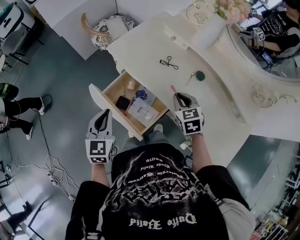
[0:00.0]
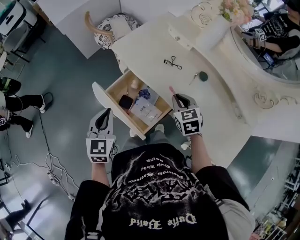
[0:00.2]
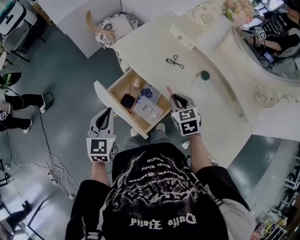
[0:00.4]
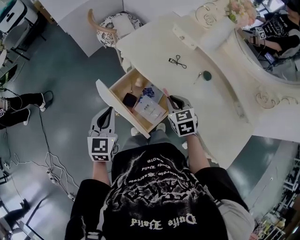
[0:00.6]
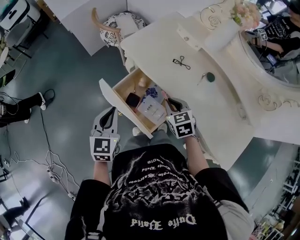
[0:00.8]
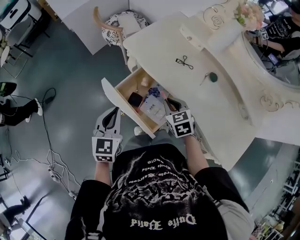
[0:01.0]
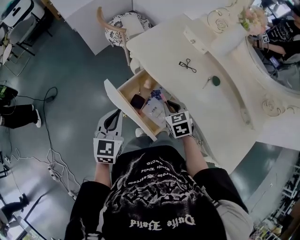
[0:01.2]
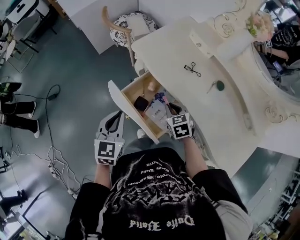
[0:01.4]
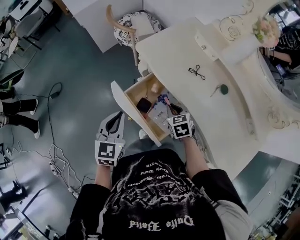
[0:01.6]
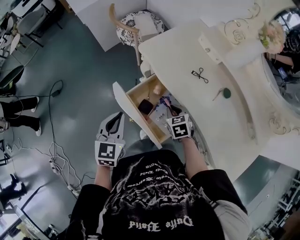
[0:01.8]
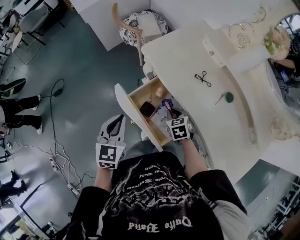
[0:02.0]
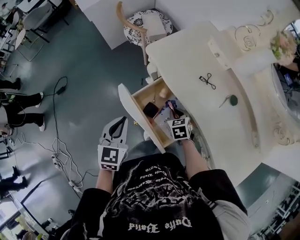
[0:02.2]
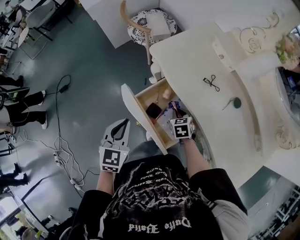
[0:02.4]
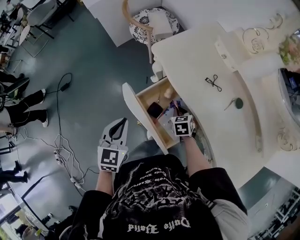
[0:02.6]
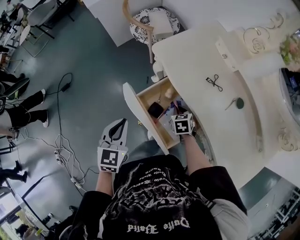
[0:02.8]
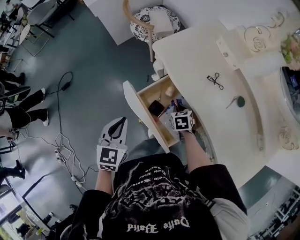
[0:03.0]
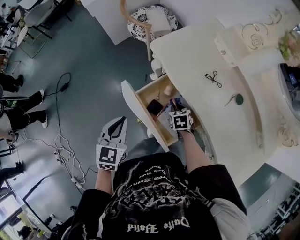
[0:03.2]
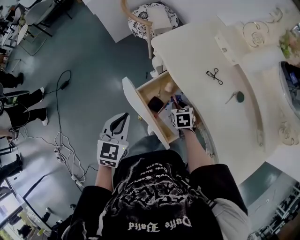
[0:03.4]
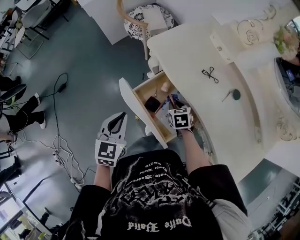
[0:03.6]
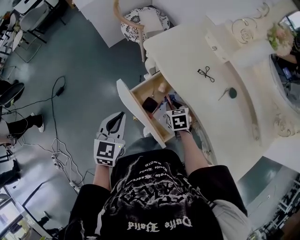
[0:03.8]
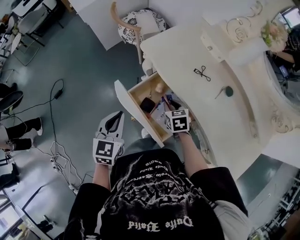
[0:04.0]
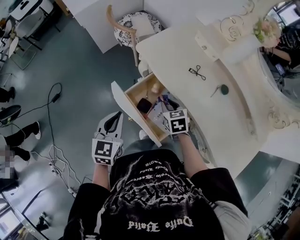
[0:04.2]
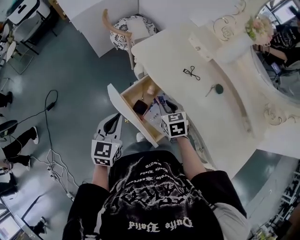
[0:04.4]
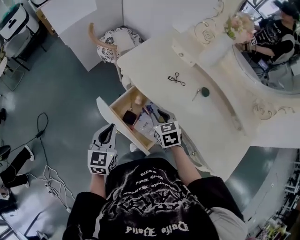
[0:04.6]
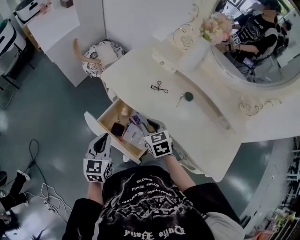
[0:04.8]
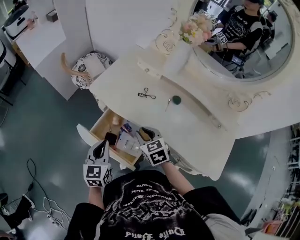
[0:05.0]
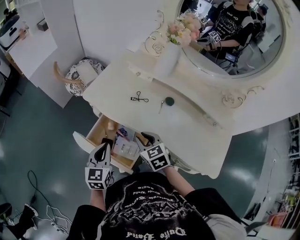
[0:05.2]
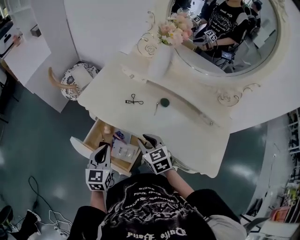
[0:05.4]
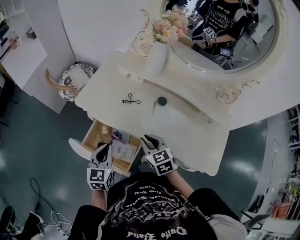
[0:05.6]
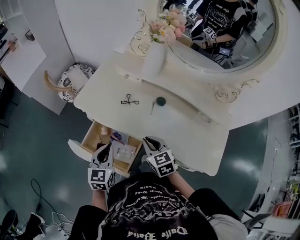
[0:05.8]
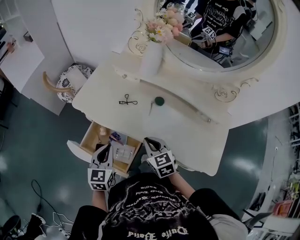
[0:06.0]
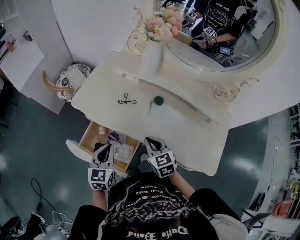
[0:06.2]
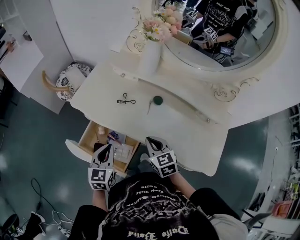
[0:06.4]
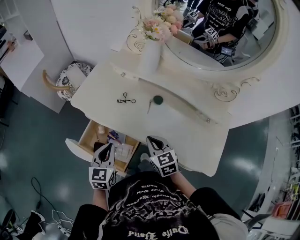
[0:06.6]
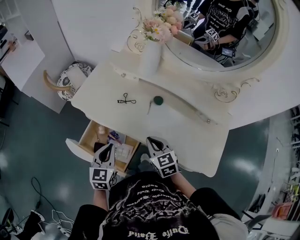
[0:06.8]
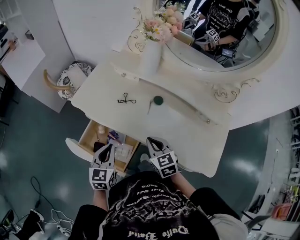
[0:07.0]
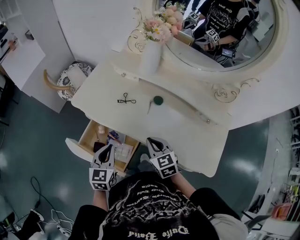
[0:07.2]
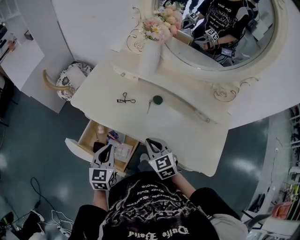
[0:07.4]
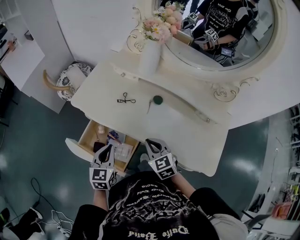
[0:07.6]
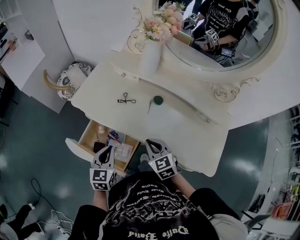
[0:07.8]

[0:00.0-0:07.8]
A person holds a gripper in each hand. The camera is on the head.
0:00.0 to 0:01.6: The right gripper shifts about 15 cm to the left and downward. The left gripper moves approximately 5 cm.
0:01.6 to 0:03.2: The right gripper goes some 10 cm downward.
0:03.2 to 0:04.6: The right gripper travels upward by approximately 15 cm.
0:04.6 to 0:06.2: The right gripper is displaced to the right and upward by some 15 cm, and closes; the left gripper travels to the right by roughly 15 cm.
0:06.2 to 0:07.8: There are only small adjustments of the grippers.

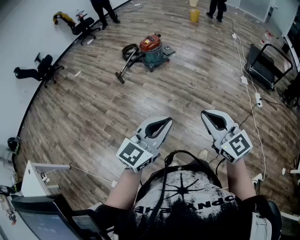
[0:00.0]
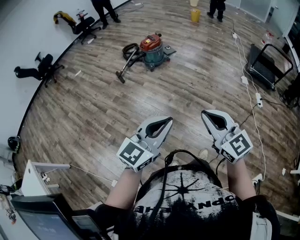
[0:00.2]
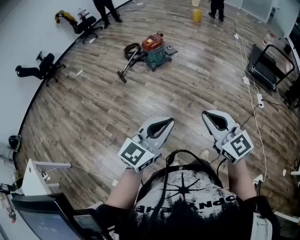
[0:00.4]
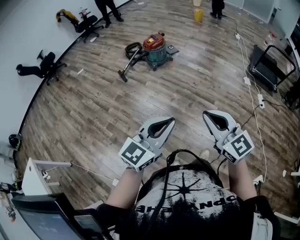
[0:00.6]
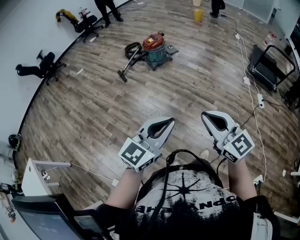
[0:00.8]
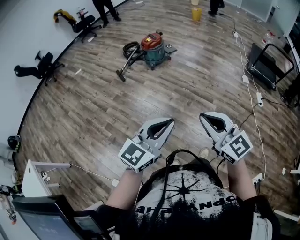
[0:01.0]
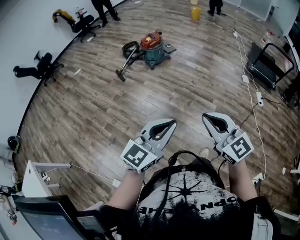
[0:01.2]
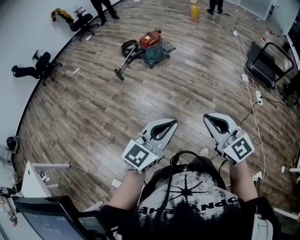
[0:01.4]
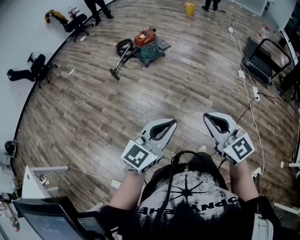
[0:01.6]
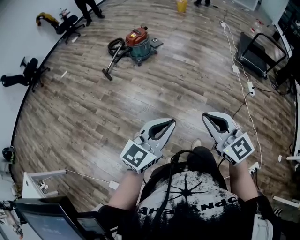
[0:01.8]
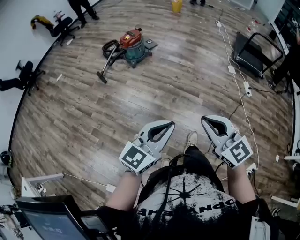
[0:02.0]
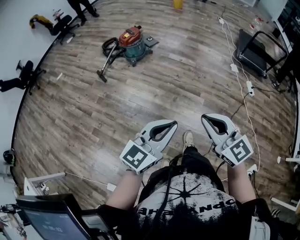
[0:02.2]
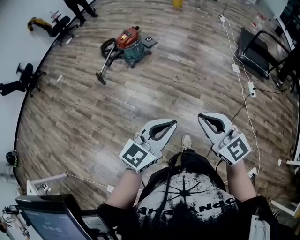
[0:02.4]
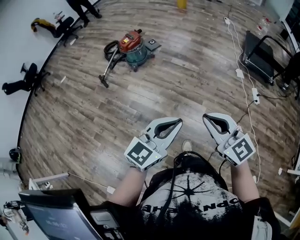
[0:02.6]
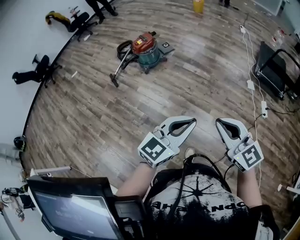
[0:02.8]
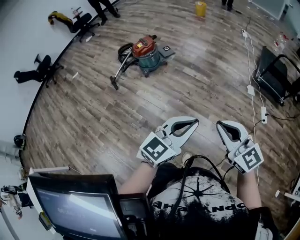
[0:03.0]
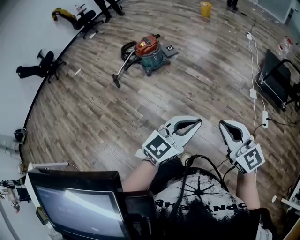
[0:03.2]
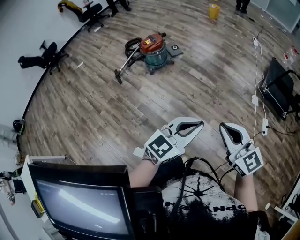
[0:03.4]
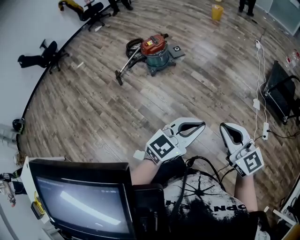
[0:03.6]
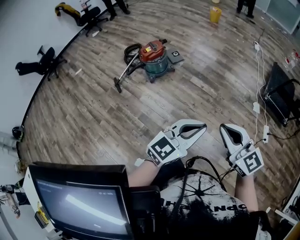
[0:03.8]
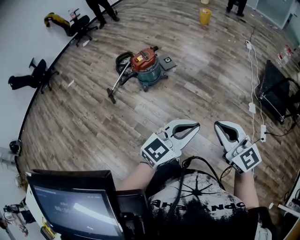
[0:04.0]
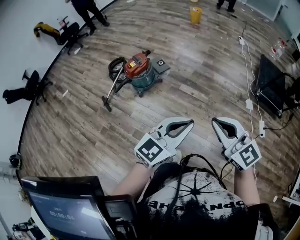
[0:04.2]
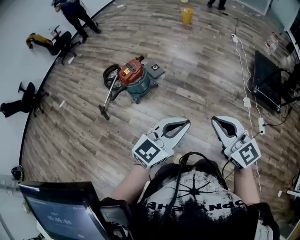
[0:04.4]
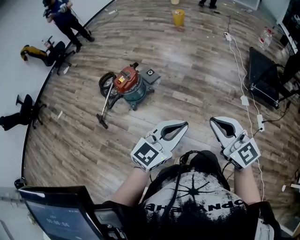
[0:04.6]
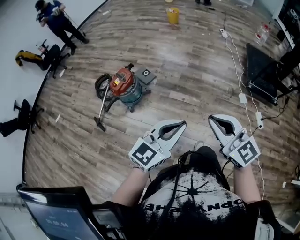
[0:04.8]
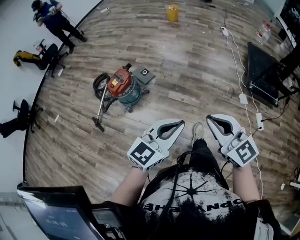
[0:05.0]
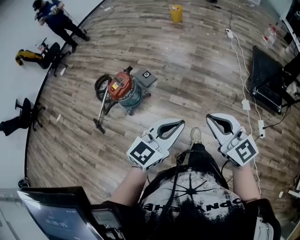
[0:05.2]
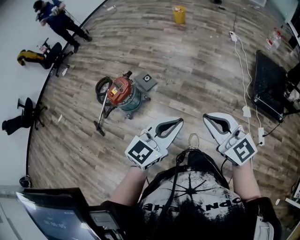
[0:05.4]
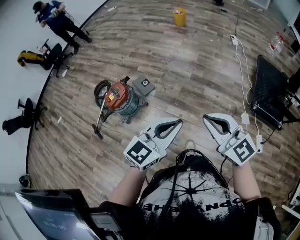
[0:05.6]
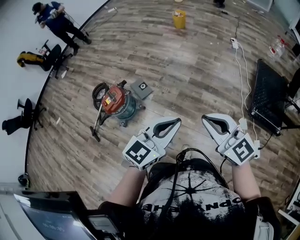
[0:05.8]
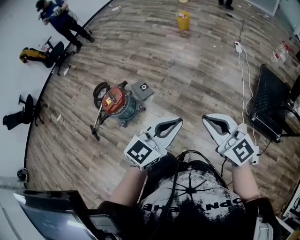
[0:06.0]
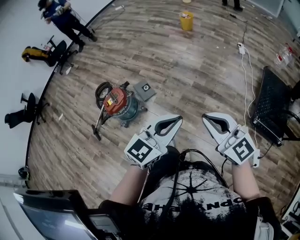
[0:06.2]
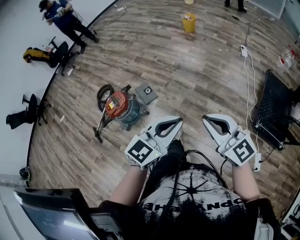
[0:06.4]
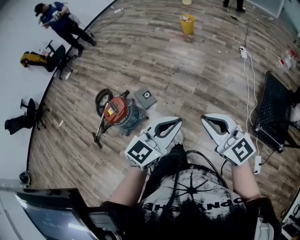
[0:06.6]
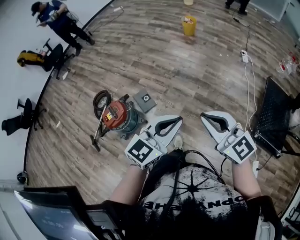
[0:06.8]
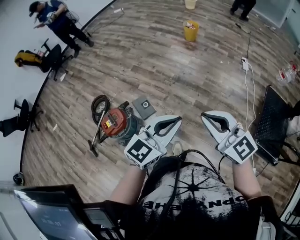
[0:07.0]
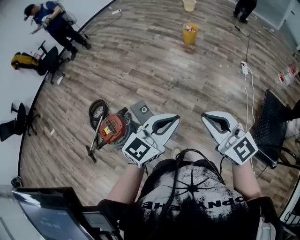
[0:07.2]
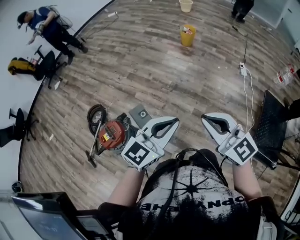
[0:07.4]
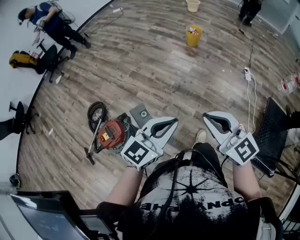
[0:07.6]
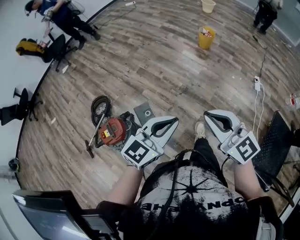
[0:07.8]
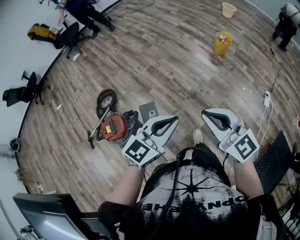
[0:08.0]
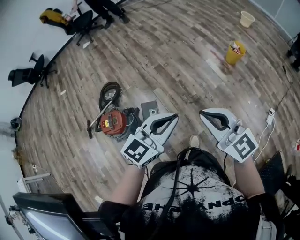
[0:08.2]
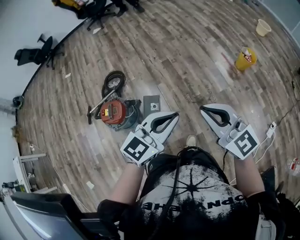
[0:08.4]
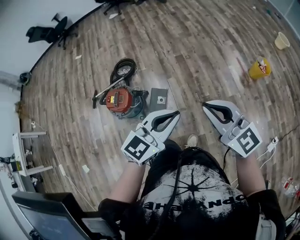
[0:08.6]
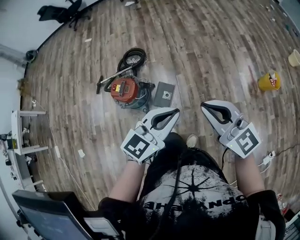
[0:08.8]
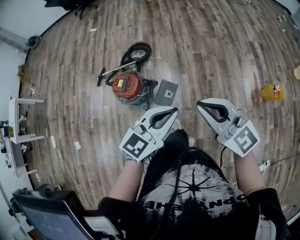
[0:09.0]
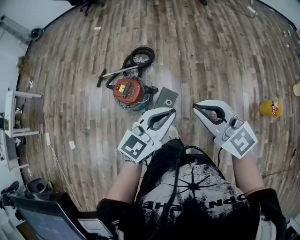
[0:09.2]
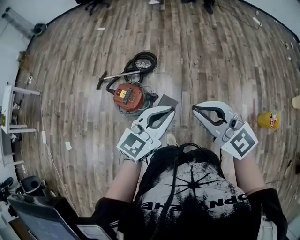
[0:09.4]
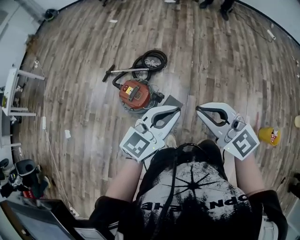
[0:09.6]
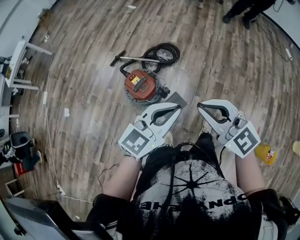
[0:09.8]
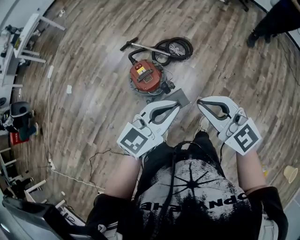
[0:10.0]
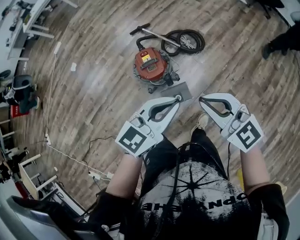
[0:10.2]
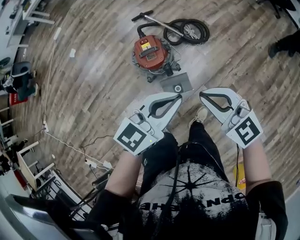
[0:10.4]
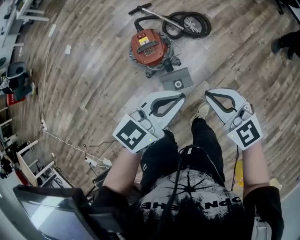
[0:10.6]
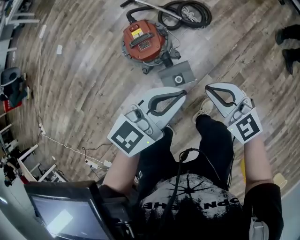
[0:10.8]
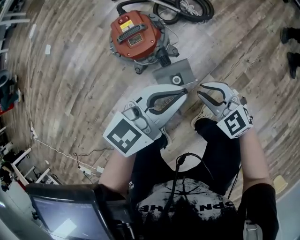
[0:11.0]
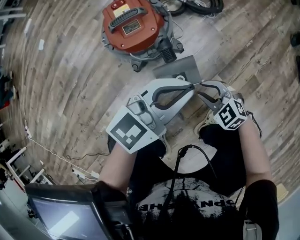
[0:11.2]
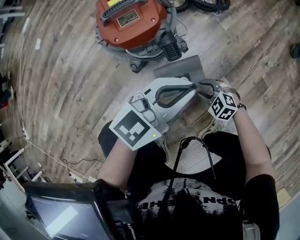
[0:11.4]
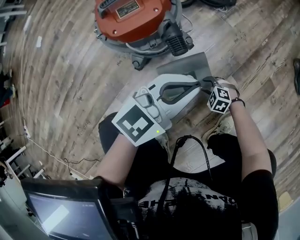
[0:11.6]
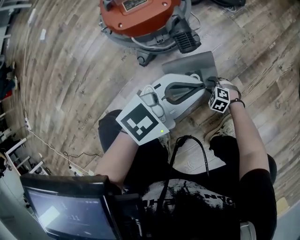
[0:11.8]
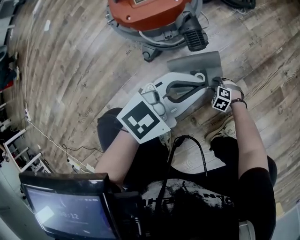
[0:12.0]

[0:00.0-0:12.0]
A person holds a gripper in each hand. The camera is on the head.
0:00.0 to 0:01.6: The grippers stay close to where they were, moving slightly.
0:01.6 to 0:03.0: Both grippers travel together forward and to the right, about 35 cm.
0:03.0 to 0:04.4: Both grippers move forward, about 30 cm.
0:04.4 to 0:06.0: Both grippers are carried forward and to the right, some 40 cm.
0:06.0 to 0:07.6: The two grippers go approximately 40 cm forward.
0:07.6 to 0:09.0: The right gripper changes place by about 30 cm, and changes its angle by about 60 degrees; the left gripper ends up some 25 cm from where it was, and rotates roughly 60 degrees.
0:09.0 to 0:10.4: The right gripper ends up roughly 30 cm from where it was, and changes its angle by about 60 degrees; the left gripper changes place by approximately 25 cm, and swivels roughly 50 degrees.
0:10.4 to 0:12.0: The right gripper shifts some 90 cm downward, points its fingers about 60 degrees further downward, and opens its fingers, while the left gripper goes approximately 60 cm downward.

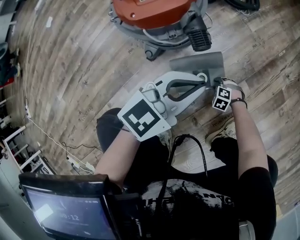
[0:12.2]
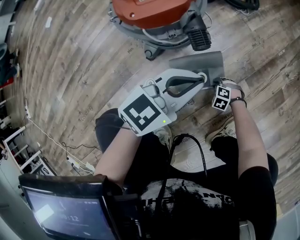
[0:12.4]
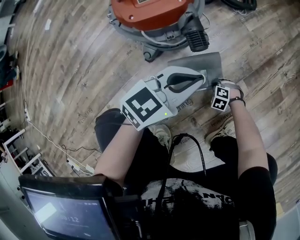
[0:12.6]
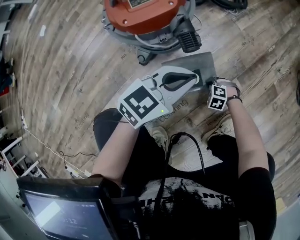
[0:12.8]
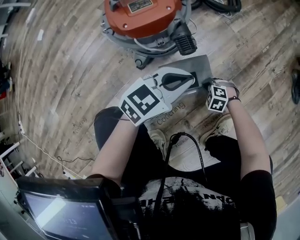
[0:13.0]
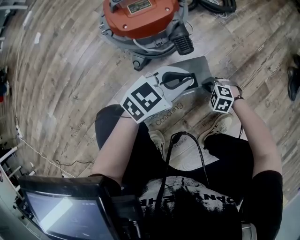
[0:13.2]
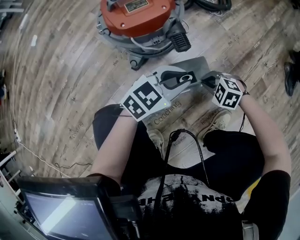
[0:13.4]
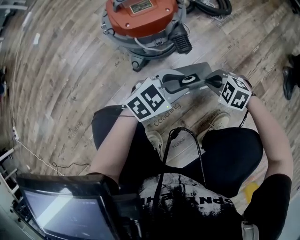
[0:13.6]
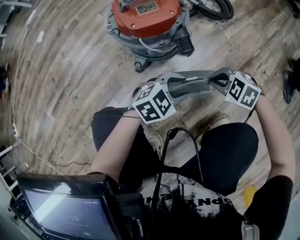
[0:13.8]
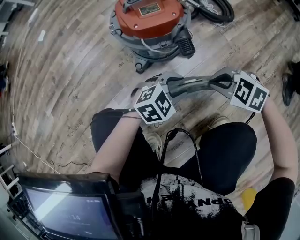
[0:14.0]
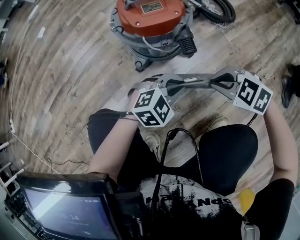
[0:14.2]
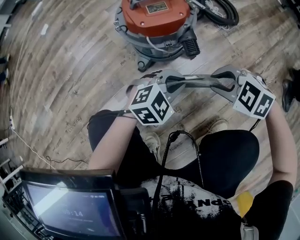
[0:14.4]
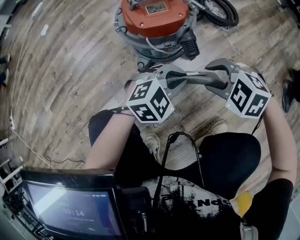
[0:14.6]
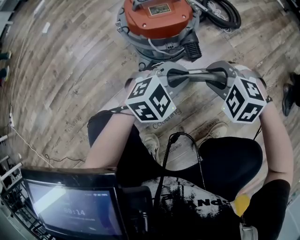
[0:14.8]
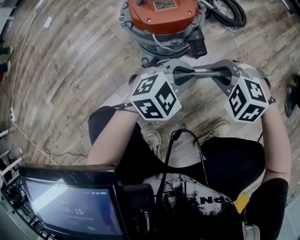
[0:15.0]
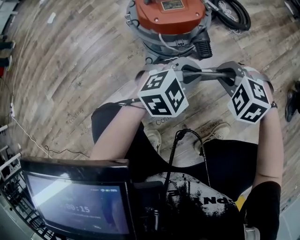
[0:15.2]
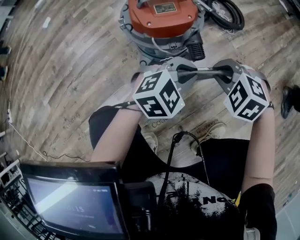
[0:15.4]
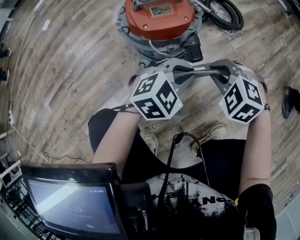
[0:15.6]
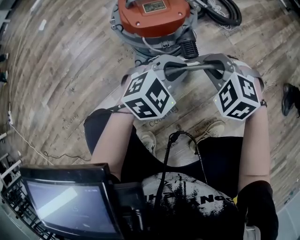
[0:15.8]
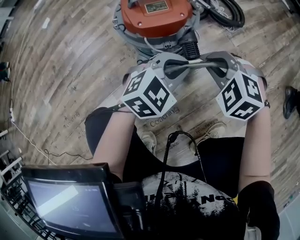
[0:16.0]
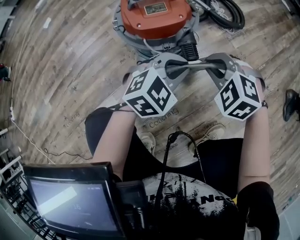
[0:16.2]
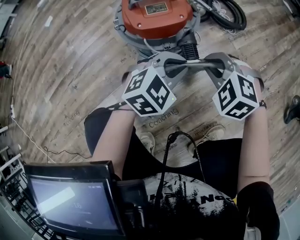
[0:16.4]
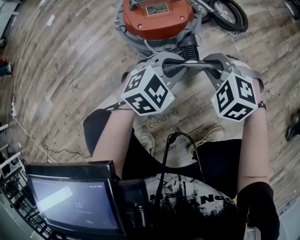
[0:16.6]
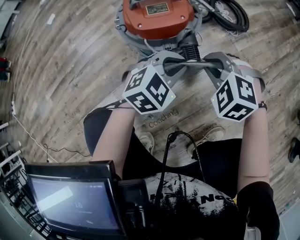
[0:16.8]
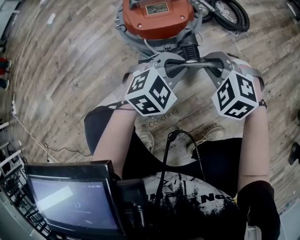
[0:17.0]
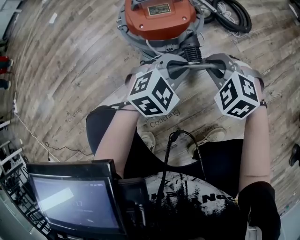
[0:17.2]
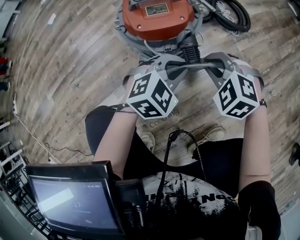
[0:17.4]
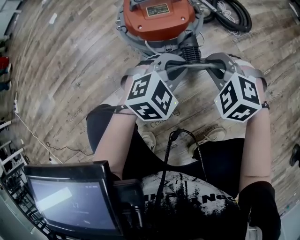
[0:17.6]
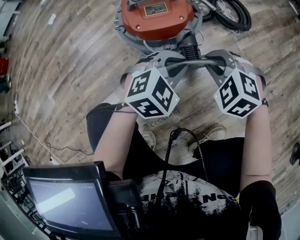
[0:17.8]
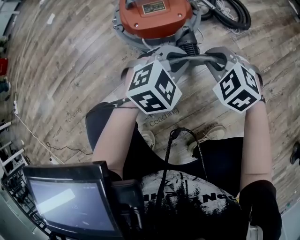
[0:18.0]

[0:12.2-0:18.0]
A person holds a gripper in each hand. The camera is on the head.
0:12.2 to 0:13.6: The right gripper is displaced upward by roughly 25 cm, and closes. The left gripper goes roughly 5 cm downward, and opens.
0:13.6 to 0:15.0: The right gripper is displaced upward by some 10 cm, turns by approximately 20 degrees, and opens and closes again. Meanwhile the left gripper shifts by roughly 5 cm, and closes.
0:15.0 to 0:16.6: Both grippers travel together forward, about 5 cm.
0:16.6 to 0:18.0: The grippers move only a little.
